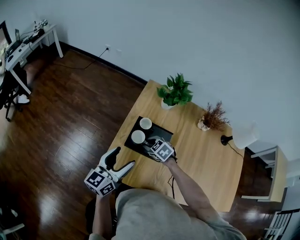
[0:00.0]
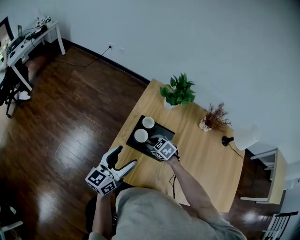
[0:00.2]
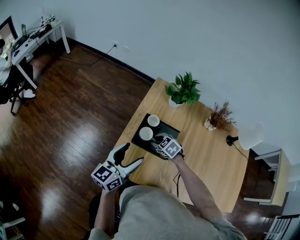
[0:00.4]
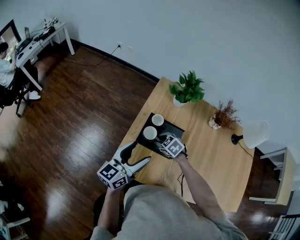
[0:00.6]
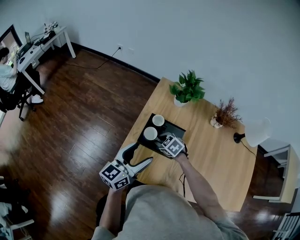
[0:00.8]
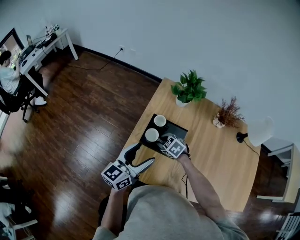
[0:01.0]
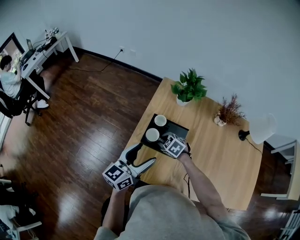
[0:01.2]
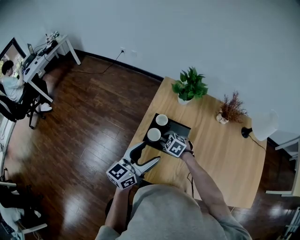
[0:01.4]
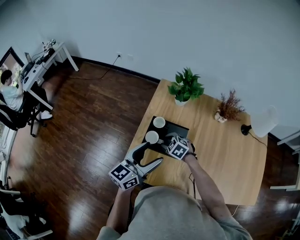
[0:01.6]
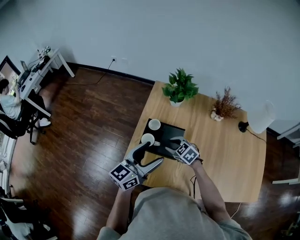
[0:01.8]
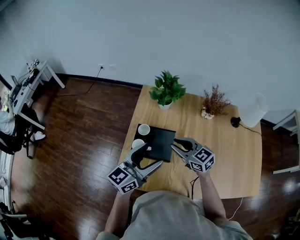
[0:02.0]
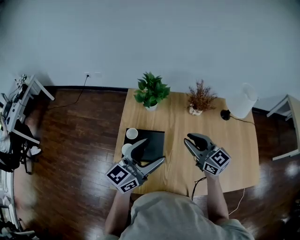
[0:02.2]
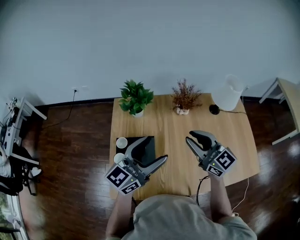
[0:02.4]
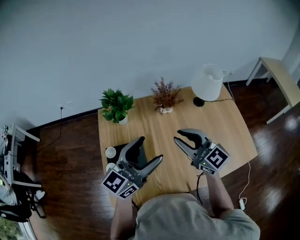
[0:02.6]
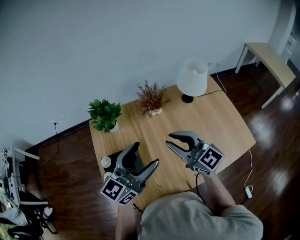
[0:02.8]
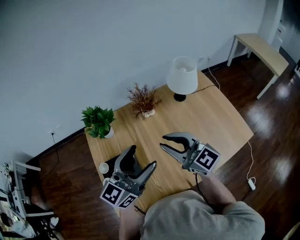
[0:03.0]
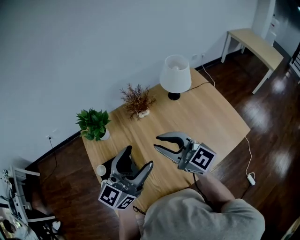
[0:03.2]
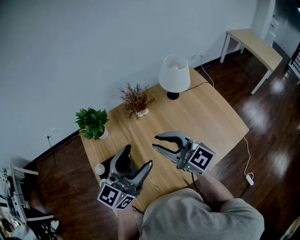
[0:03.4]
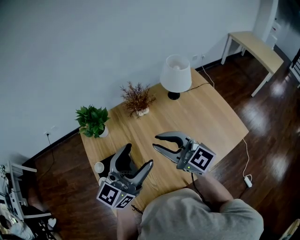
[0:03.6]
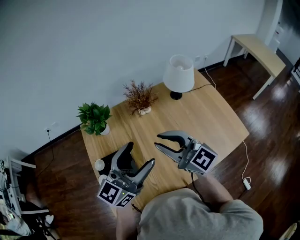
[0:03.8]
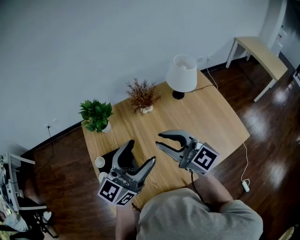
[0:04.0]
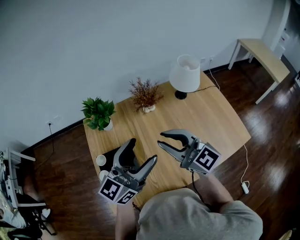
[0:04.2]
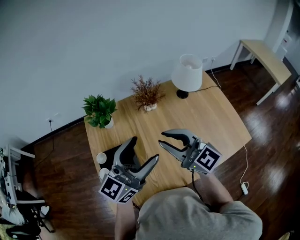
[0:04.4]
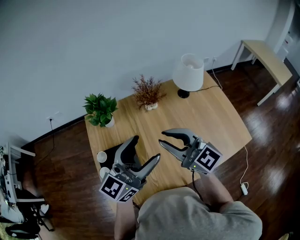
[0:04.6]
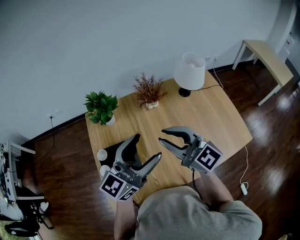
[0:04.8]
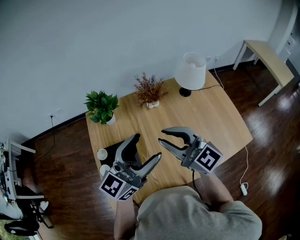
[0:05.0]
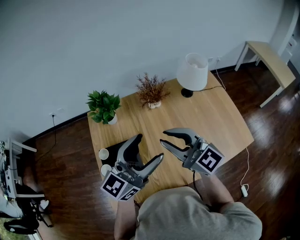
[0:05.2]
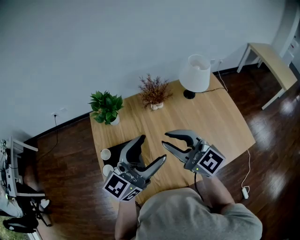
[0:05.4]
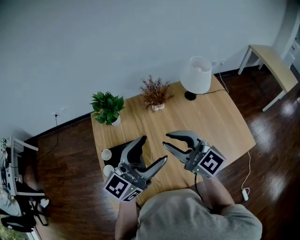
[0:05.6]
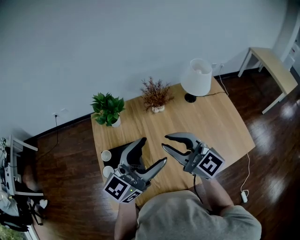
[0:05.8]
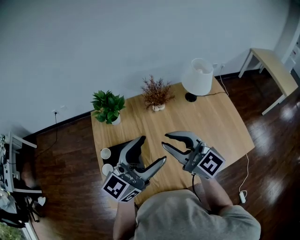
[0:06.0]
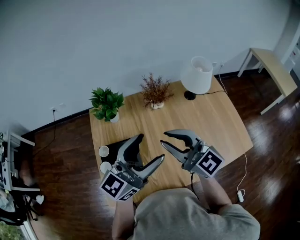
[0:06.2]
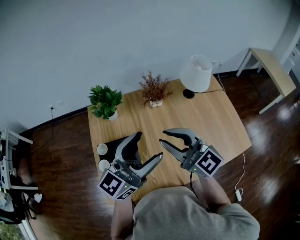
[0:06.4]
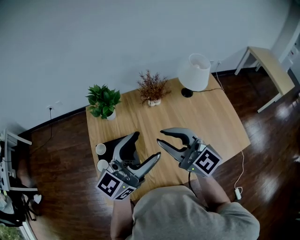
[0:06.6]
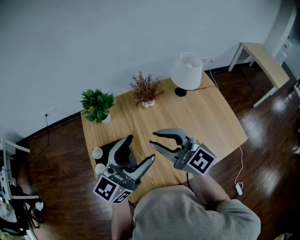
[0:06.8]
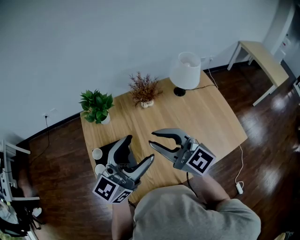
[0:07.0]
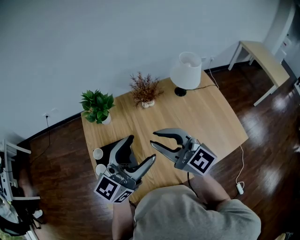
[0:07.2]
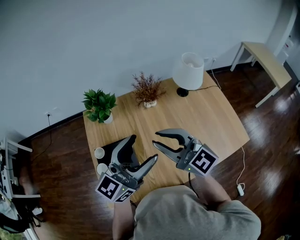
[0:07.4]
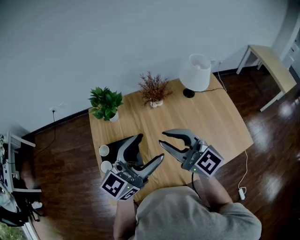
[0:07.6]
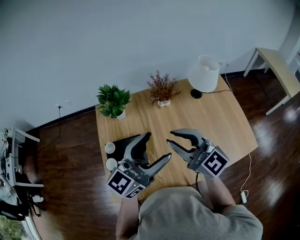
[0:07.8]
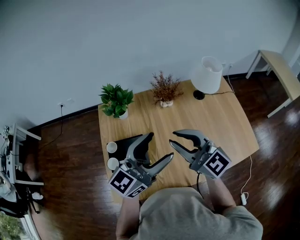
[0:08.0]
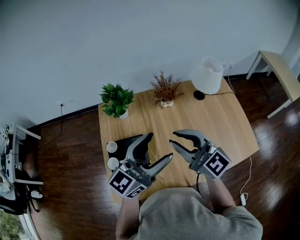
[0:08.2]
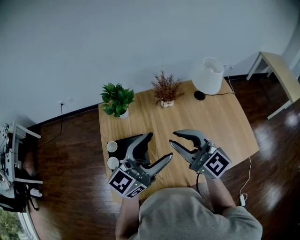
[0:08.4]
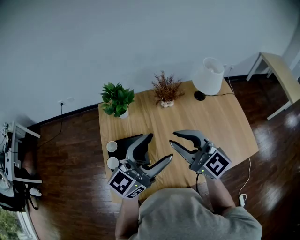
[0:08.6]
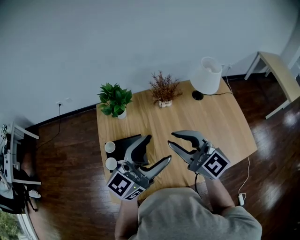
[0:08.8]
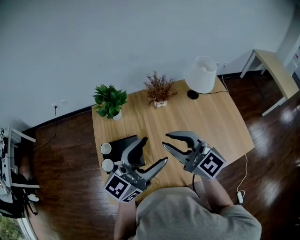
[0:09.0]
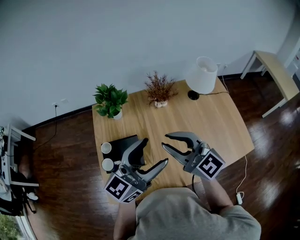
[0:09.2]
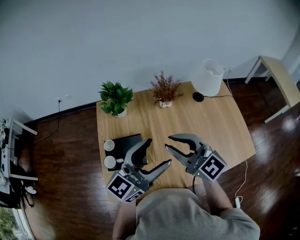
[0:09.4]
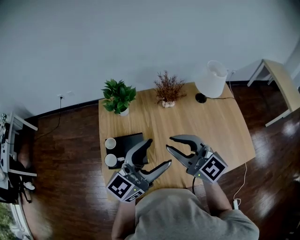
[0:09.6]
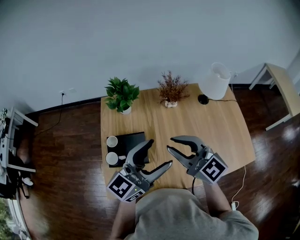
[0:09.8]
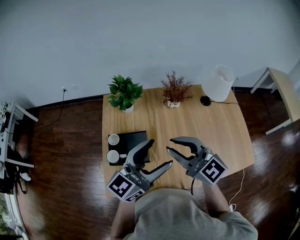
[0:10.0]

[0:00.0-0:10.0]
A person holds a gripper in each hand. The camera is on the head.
0:00.0 to 0:01.4: The left gripper shifts by approximately 5 cm.
0:01.4 to 0:02.8: The right gripper travels upward by approximately 30 cm, and tilts its fingers about 60 degrees upward, while the left gripper shifts by some 30 cm, and swivels about 40 degrees.
0:02.8 to 0:05.8: The grippers make only small movements.
0:05.8 to 0:07.2: There are only small adjustments of the grippers.
0:07.2 to 0:08.6: Both grippers stay put.
0:08.6 to 0:10.0: The grippers stay close to where they were, moving slightly.

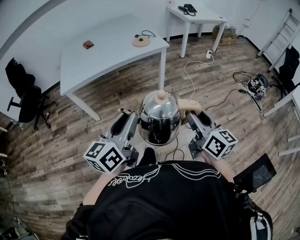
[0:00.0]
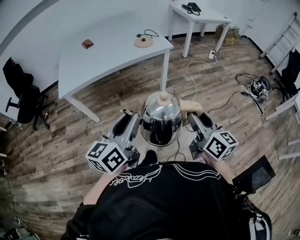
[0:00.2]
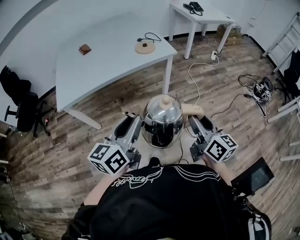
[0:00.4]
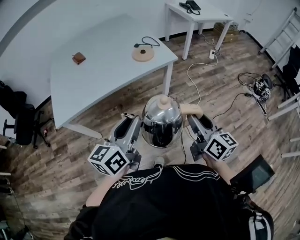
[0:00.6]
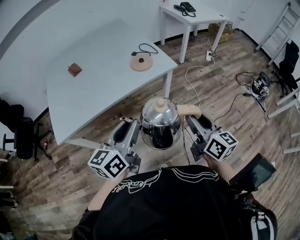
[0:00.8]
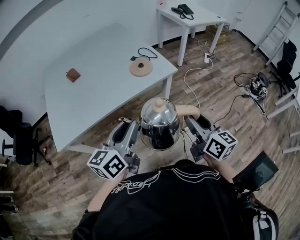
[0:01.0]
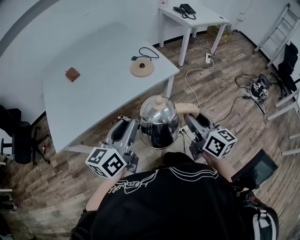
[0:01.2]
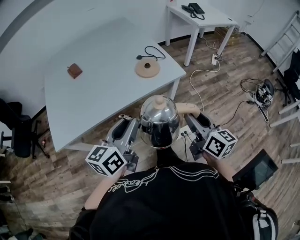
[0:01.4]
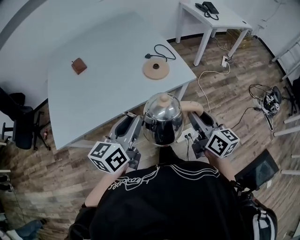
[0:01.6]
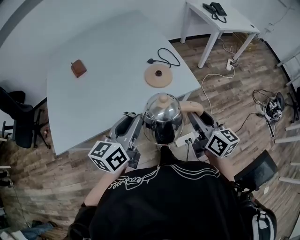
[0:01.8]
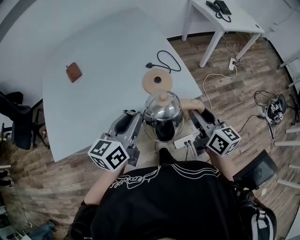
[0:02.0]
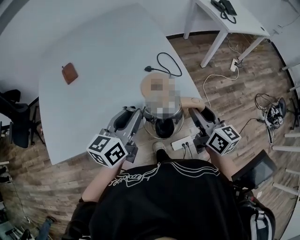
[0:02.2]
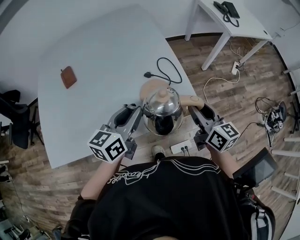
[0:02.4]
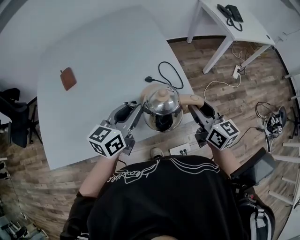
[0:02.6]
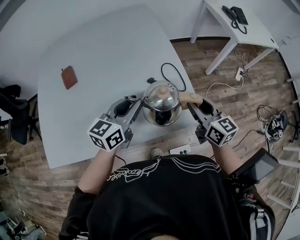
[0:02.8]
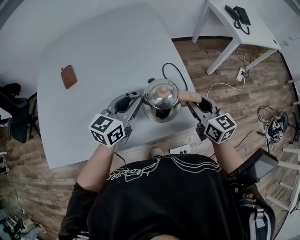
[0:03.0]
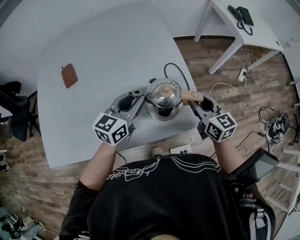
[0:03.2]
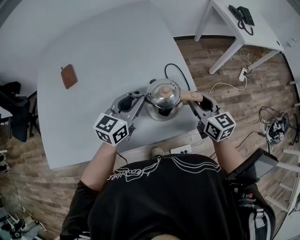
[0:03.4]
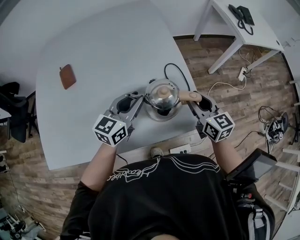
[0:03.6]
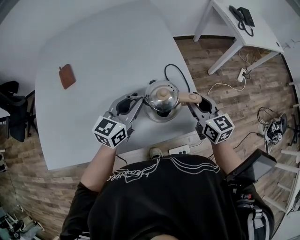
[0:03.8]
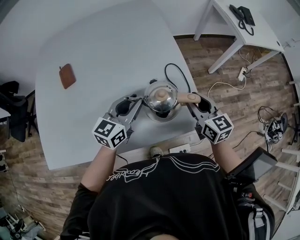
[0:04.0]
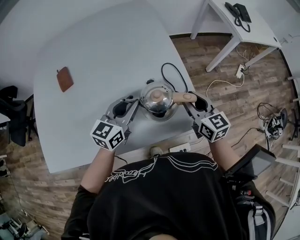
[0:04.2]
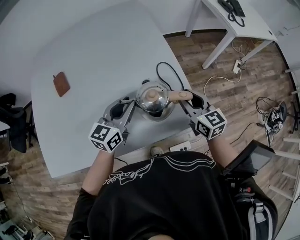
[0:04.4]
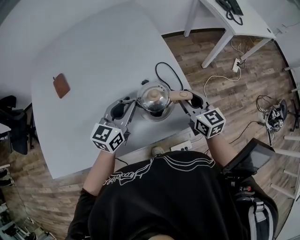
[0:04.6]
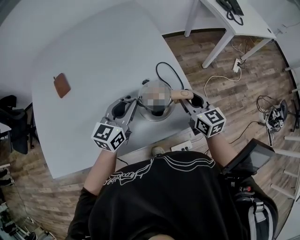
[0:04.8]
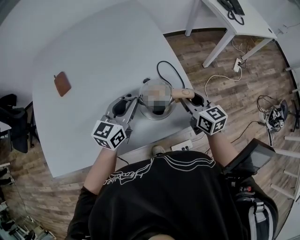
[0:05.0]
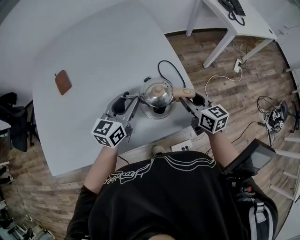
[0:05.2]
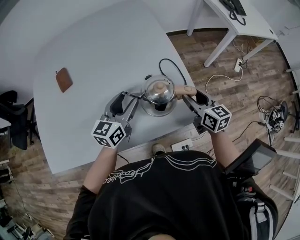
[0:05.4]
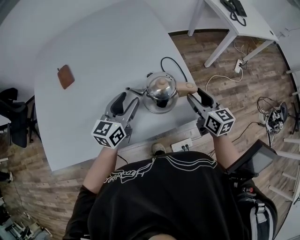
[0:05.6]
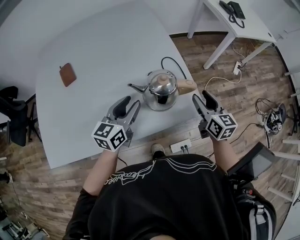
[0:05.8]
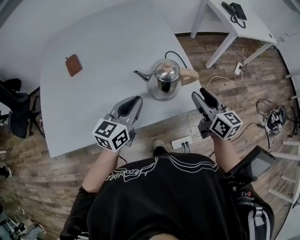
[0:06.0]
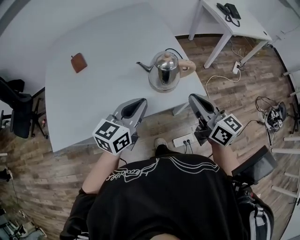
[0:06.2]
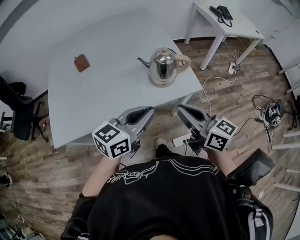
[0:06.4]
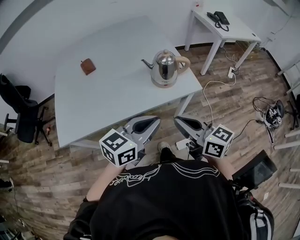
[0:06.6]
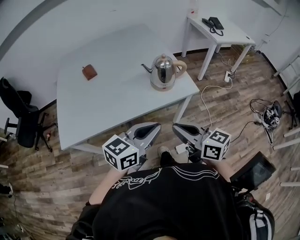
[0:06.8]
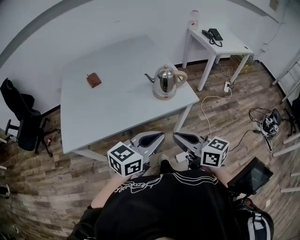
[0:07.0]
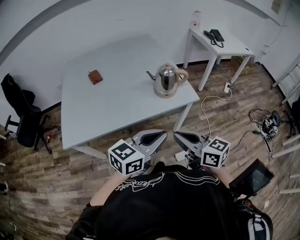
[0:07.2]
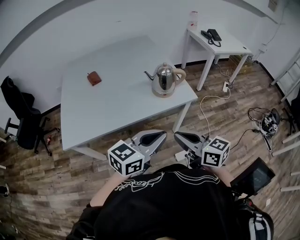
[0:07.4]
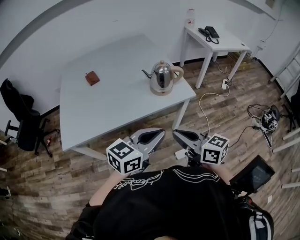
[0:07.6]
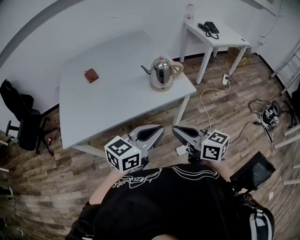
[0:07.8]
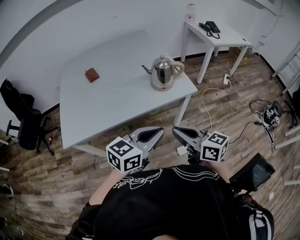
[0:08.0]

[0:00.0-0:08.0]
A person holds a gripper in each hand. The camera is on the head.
0:00.0 to 0:01.6: Both grippers are carried forward, approximately 40 cm.
0:01.6 to 0:03.2: Both grippers move forward, about 35 cm. The right gripper changes its angle by approximately 20 degrees.
0:03.2 to 0:04.8: The grippers stay close to where they were, moving slightly.
0:04.8 to 0:06.4: The grippers both shift backward and upward by roughly 30 cm. The left gripper closes its fingers; the right gripper rotates some 20 degrees, and closes its fingers.
0:06.4 to 0:08.0: Both grippers travel together backward, some 15 cm.

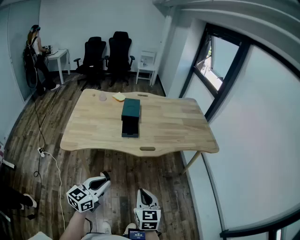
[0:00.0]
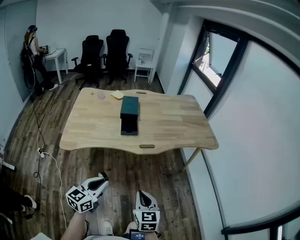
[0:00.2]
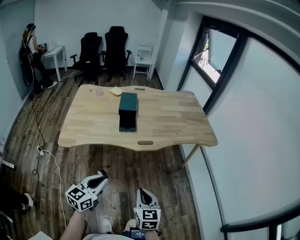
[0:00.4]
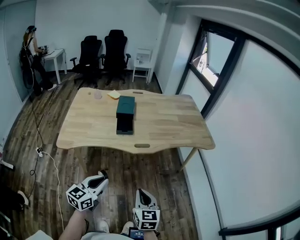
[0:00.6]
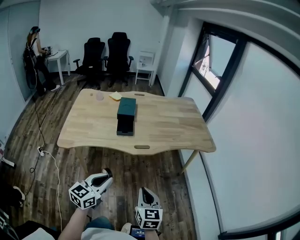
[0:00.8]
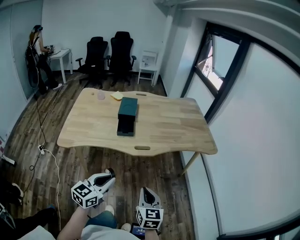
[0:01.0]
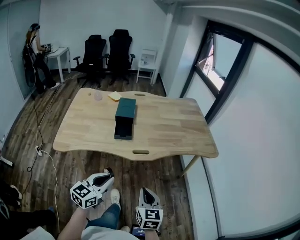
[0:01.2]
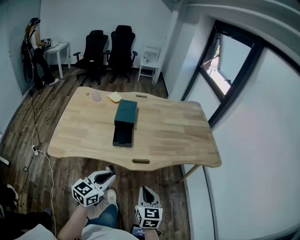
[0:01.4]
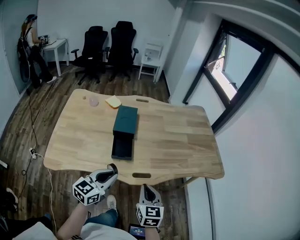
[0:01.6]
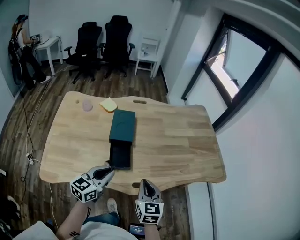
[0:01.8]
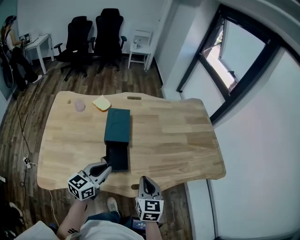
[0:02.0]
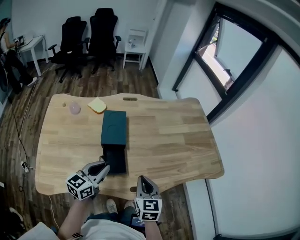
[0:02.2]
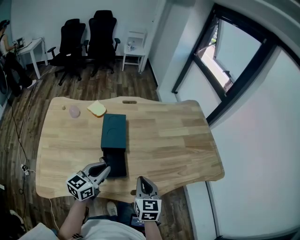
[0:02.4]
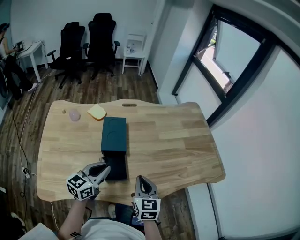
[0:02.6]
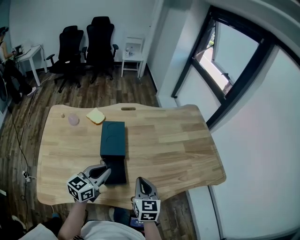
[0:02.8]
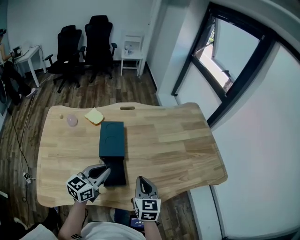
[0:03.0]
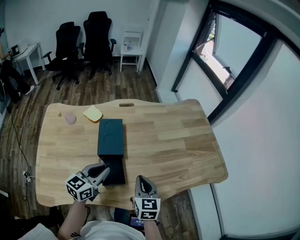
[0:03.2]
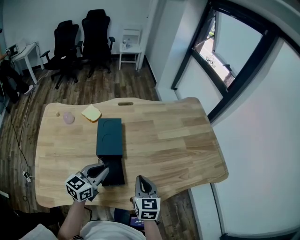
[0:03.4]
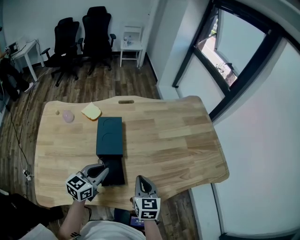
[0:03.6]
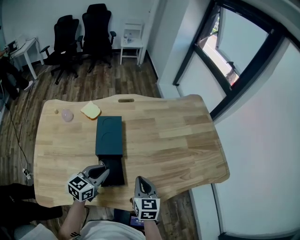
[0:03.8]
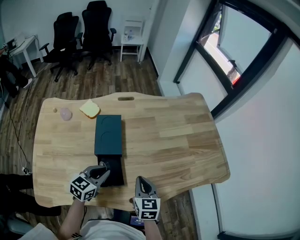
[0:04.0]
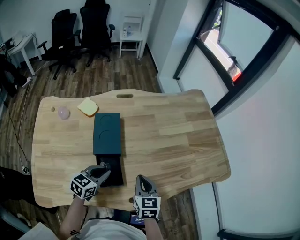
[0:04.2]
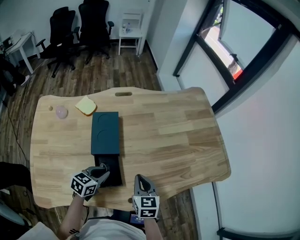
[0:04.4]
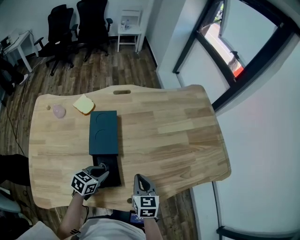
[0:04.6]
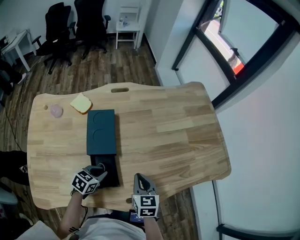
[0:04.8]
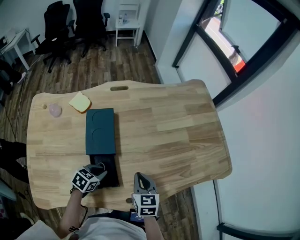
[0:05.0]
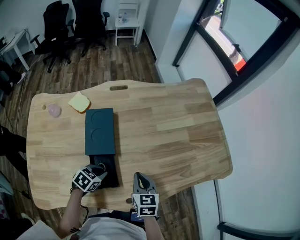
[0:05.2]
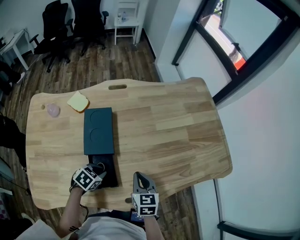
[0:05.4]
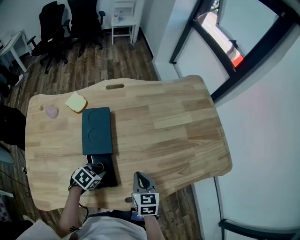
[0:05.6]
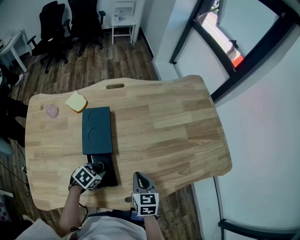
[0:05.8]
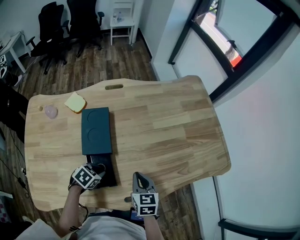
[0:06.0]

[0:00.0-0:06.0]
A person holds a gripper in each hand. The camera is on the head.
0:00.0 to 0:01.6: Both grippers travel together forward, approximately 30 cm.
0:01.6 to 0:03.0: The left gripper shifts some 20 cm forward and to the left, while the right gripper moves forward, roughly 20 cm.
0:03.0 to 0:04.4: The right gripper travels downward by roughly 5 cm. Meanwhile the left gripper shifts roughly 15 cm downward, and rotates roughly 30 degrees.
0:04.4 to 0:06.0: The left gripper is displaced downward by roughly 5 cm, and swivels approximately 30 degrees.
